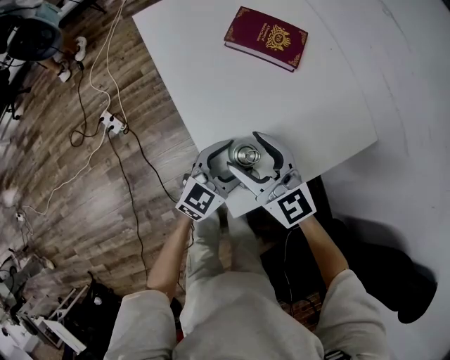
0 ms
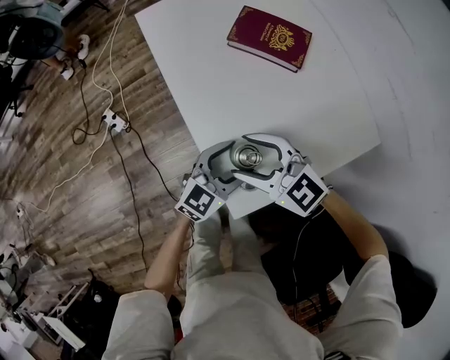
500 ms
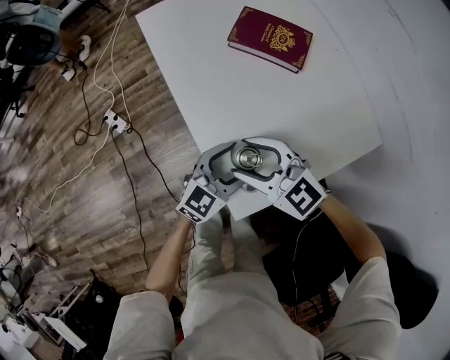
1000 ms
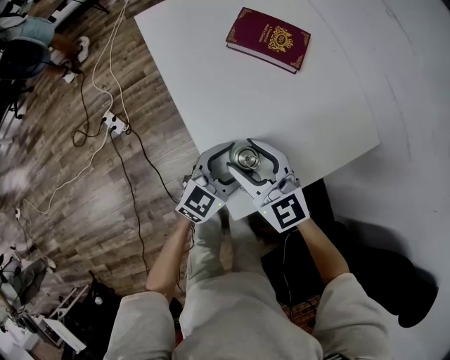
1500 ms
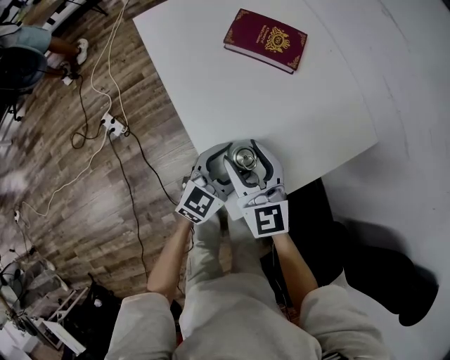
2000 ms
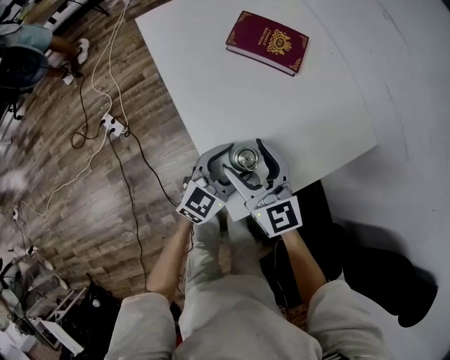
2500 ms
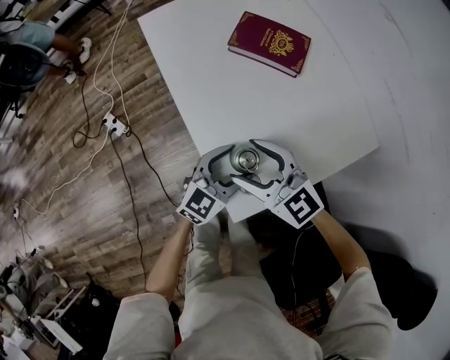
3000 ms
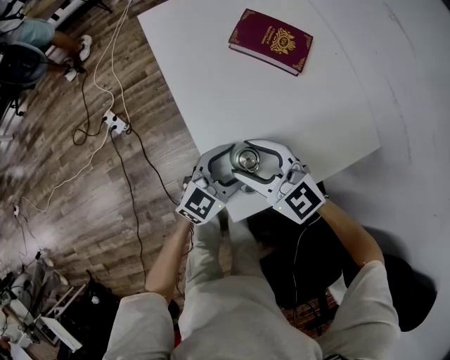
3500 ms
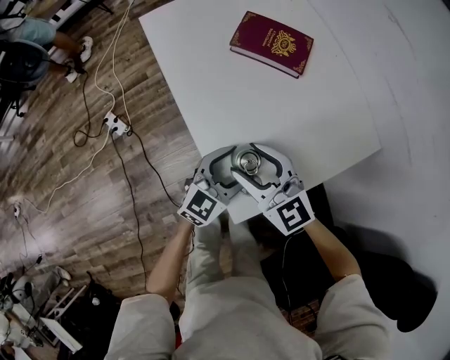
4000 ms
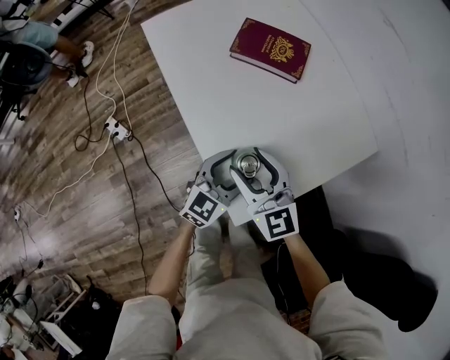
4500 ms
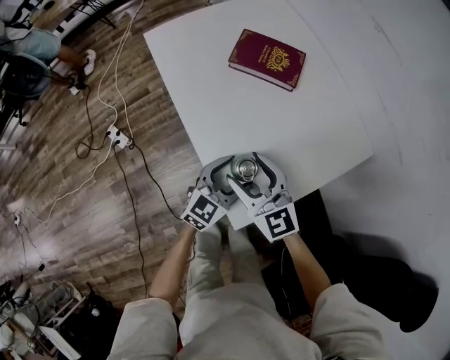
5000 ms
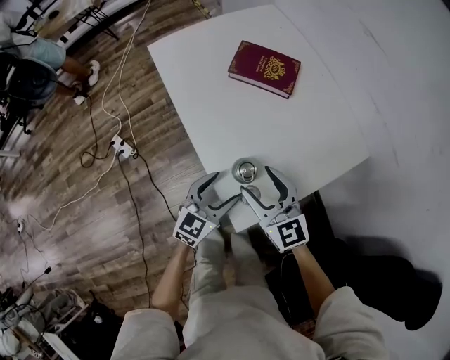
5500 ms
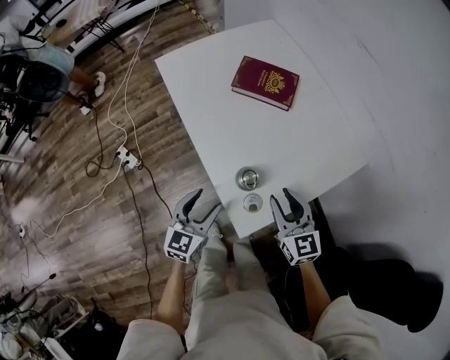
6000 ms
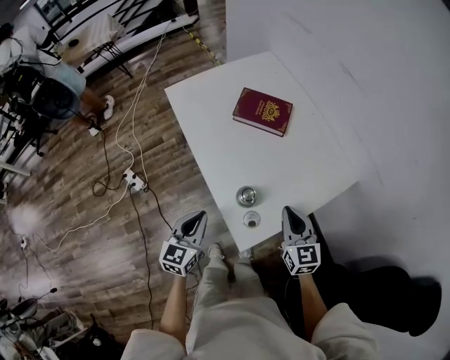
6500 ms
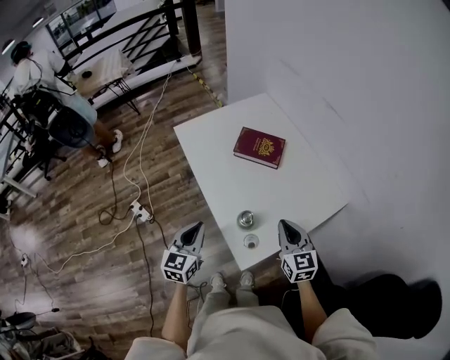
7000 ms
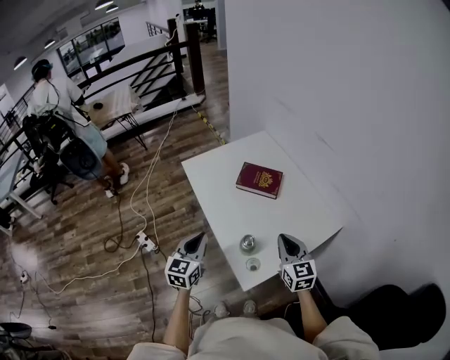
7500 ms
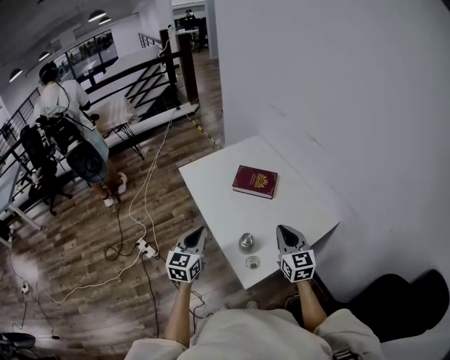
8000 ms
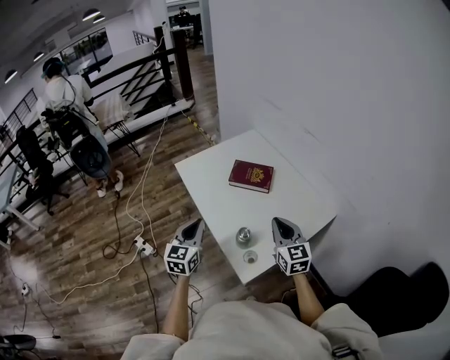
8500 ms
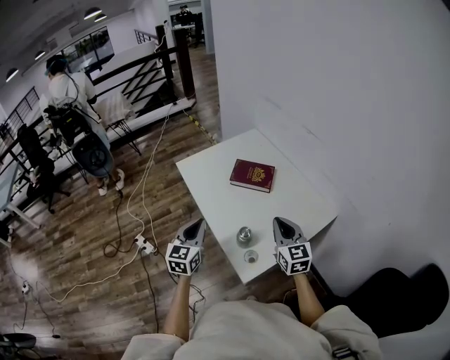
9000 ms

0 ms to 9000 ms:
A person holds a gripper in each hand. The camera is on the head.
4500 ms to 7000 ms: The right gripper travels to the right and upward by some 15 cm, and closes its fingers. Meanwhile the left gripper goes roughly 20 cm upward and to the left, turns by about 30 degrees, and closes up.
7000 ms to 9000 ms: Both grippers travel together upward, approximately 10 cm.

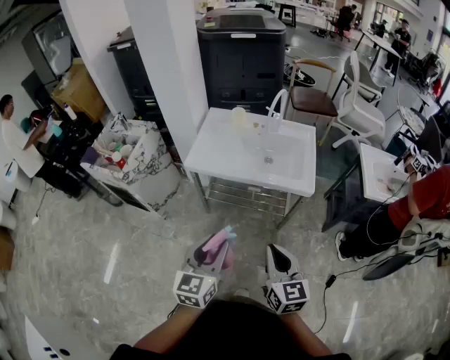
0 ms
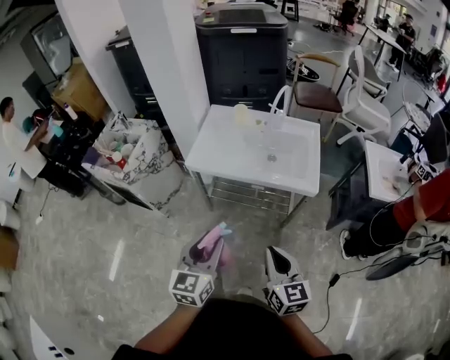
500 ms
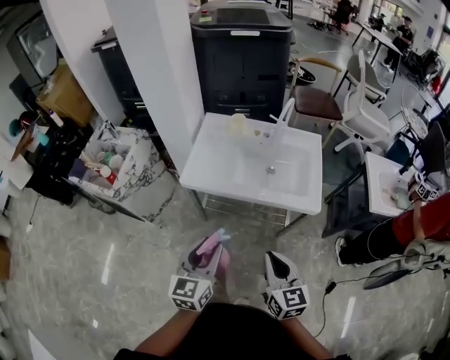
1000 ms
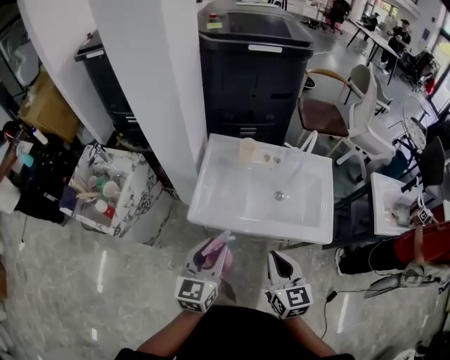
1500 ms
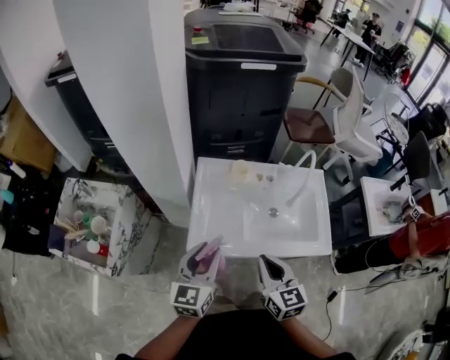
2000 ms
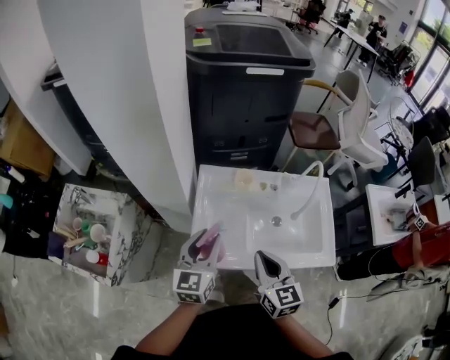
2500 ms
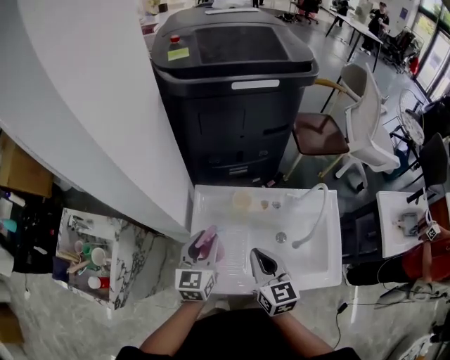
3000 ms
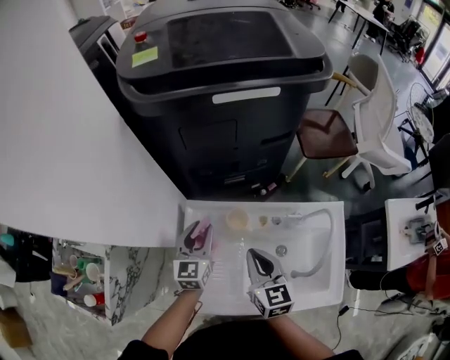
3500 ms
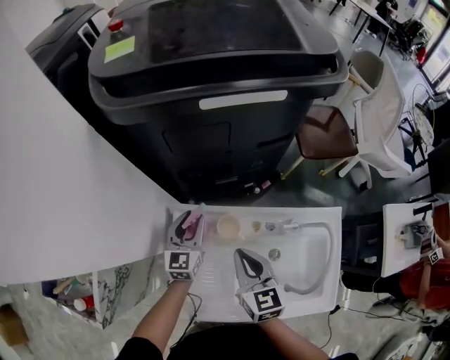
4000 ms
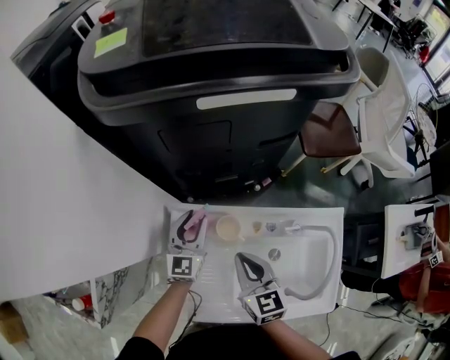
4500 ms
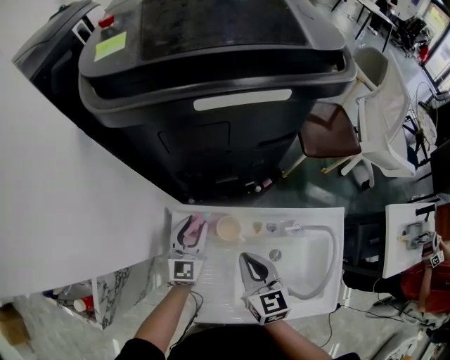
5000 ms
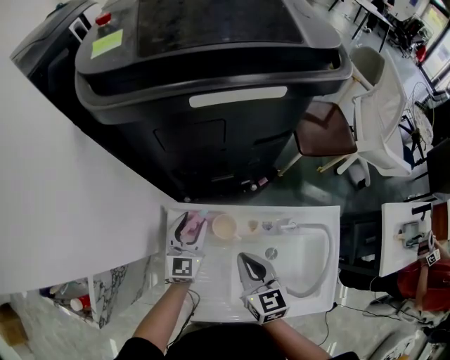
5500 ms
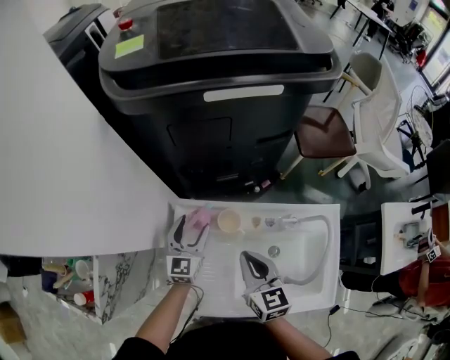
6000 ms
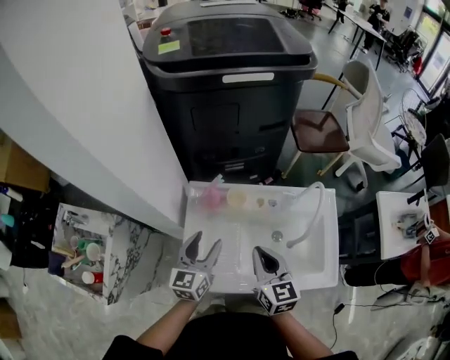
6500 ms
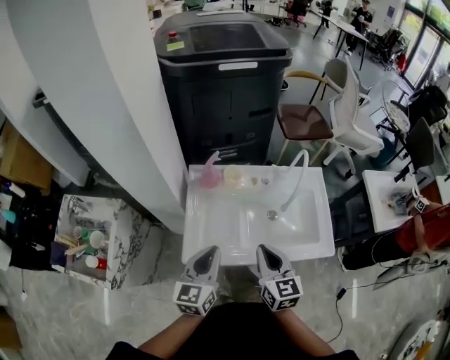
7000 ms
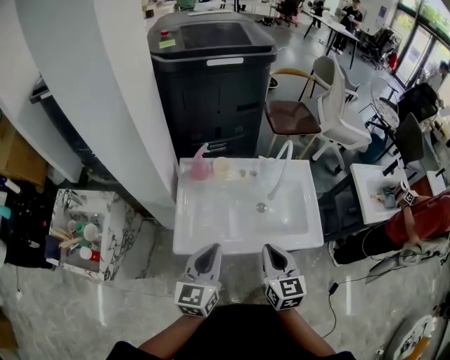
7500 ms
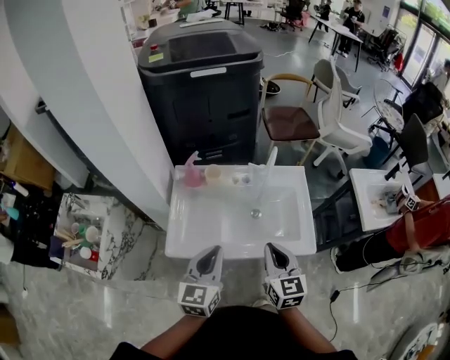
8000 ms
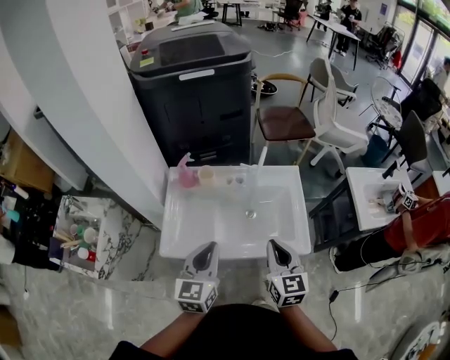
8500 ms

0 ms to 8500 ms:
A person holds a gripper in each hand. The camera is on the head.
0 ms to 2000 ms: The pair of grippers is taken forward and to the left, some 50 cm.
2000 ms to 4000 ms: The grippers both shift forward by approximately 40 cm.
4000 ms to 6500 ms: Both grippers travel together backward, roughly 20 cm. The left gripper opens its fingers.
6500 ms to 8500 ms: The left gripper shifts roughly 30 cm backward, to the right and upward, and closes. The right gripper moves to the right and backward, about 25 cm.

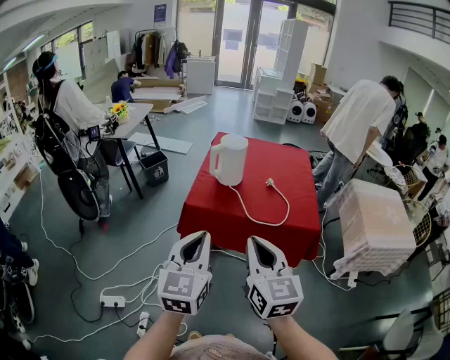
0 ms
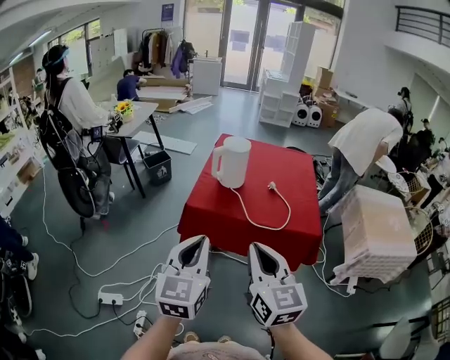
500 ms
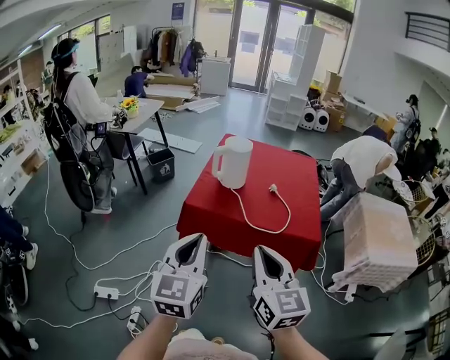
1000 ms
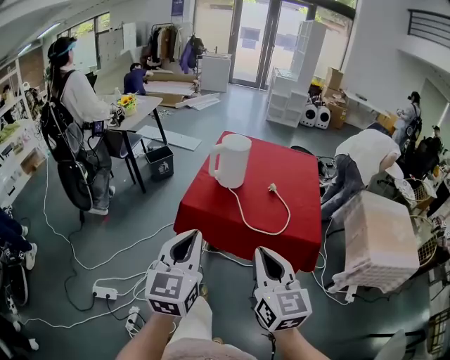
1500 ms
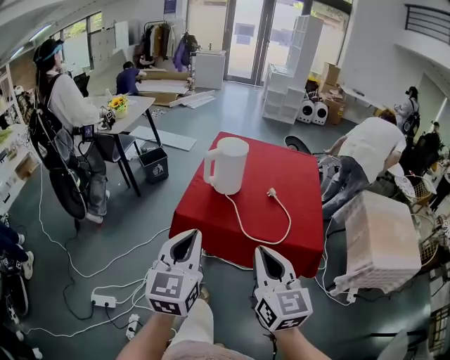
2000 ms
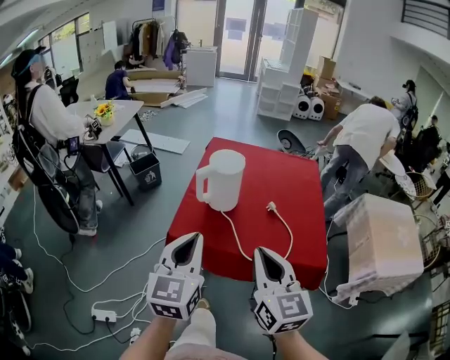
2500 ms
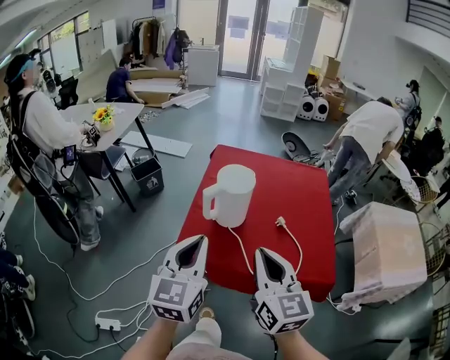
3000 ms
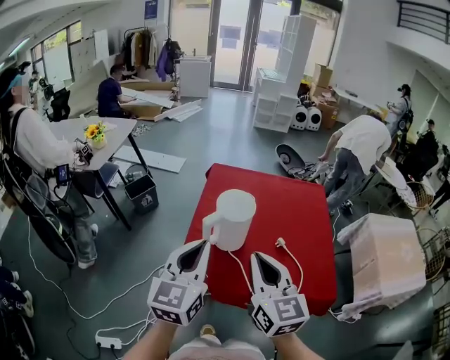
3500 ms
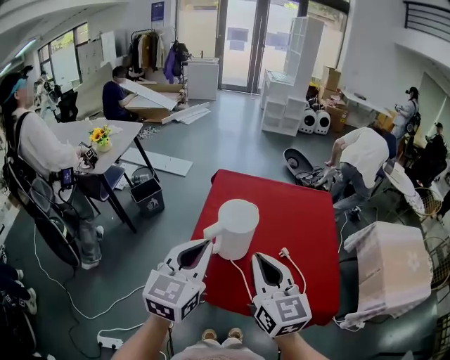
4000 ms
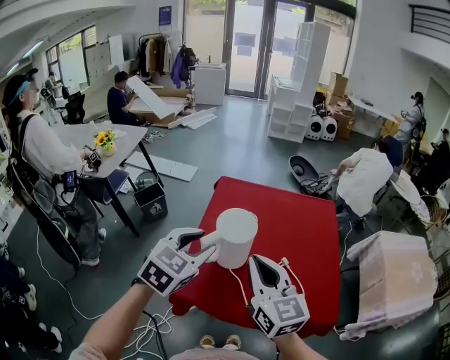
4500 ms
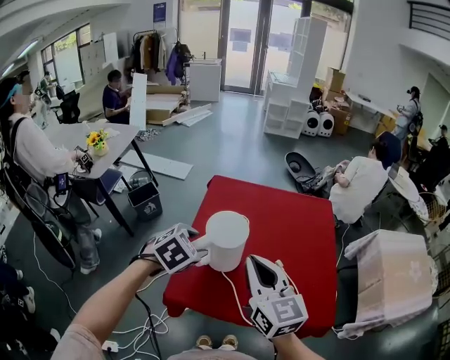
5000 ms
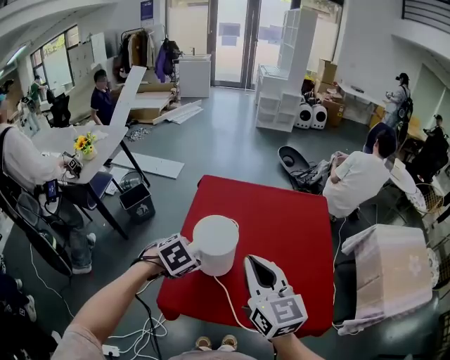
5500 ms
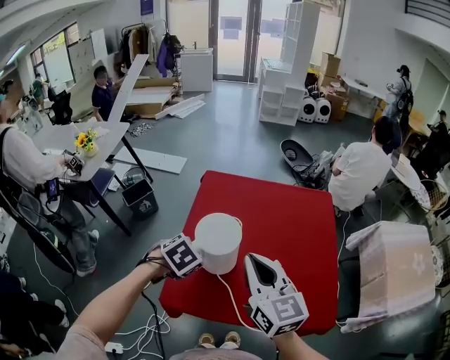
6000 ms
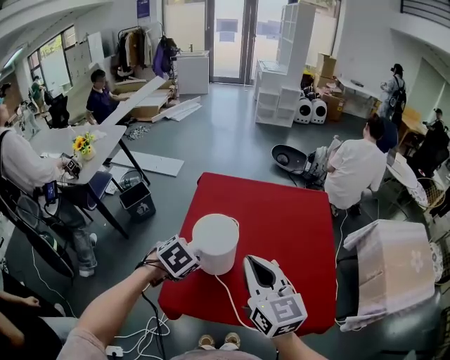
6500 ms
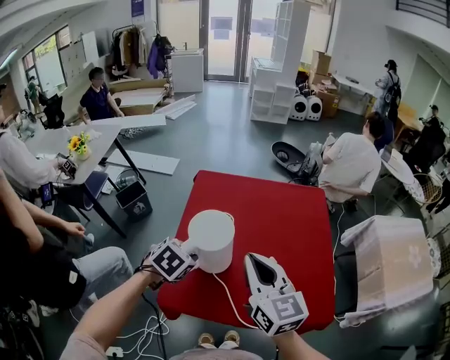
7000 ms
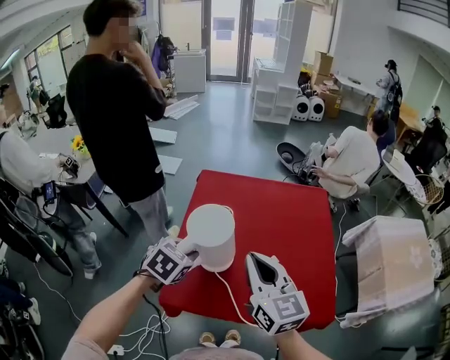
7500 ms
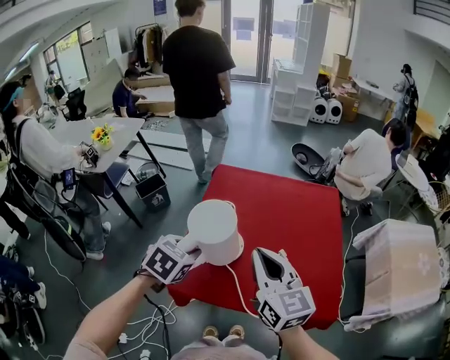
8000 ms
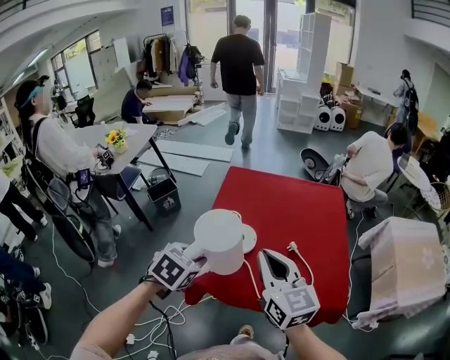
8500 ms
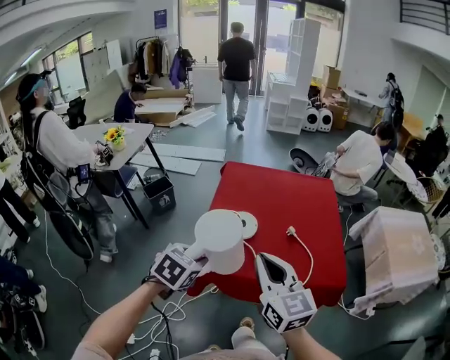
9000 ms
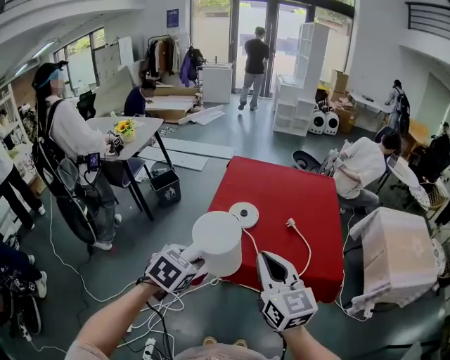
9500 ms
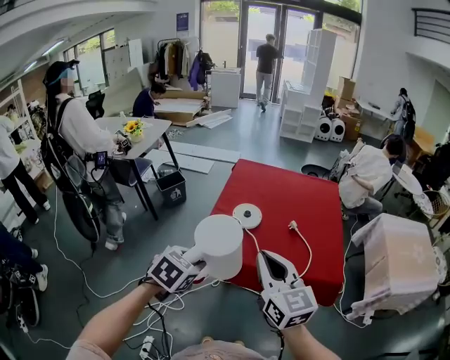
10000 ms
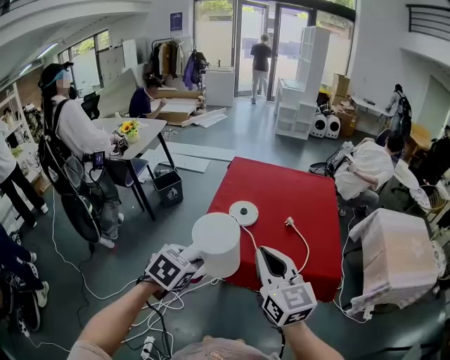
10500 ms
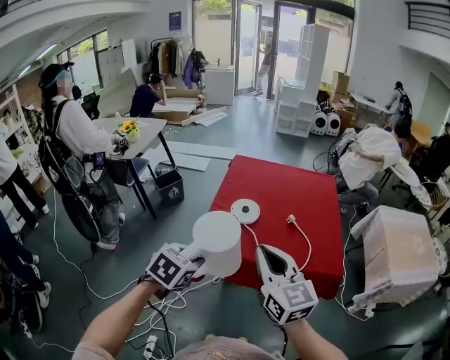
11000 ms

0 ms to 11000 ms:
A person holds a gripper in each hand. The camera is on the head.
0 ms to 2000 ms: The left gripper shifts roughly 10 cm forward. The right gripper travels forward and to the right by roughly 10 cm.
2000 ms to 3500 ms: The grippers both shift forward by approximately 25 cm.
3500 ms to 5500 ms: The right gripper moves forward, about 10 cm; the left gripper heads downward and forward, covering some 25 cm, points its fingers approximately 60 degrees further downward, and opens.
5500 ms to 7500 ms: The left gripper changes its angle by about 20 degrees, and closes up.
7500 ms to 9000 ms: Both grippers travel together backward, roughly 20 cm.
9000 ms to 11000 ms: The grippers both shift backward by about 10 cm.
